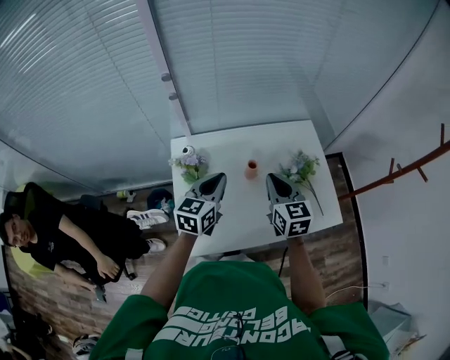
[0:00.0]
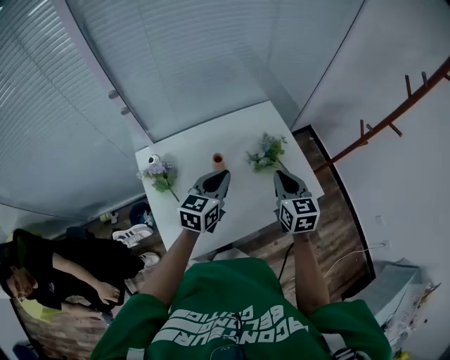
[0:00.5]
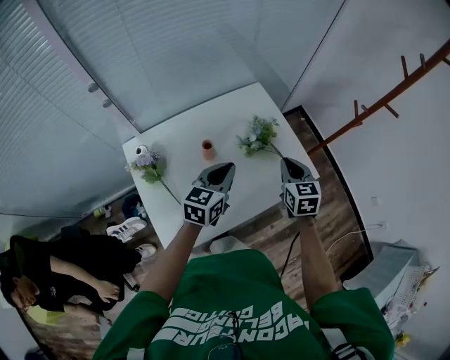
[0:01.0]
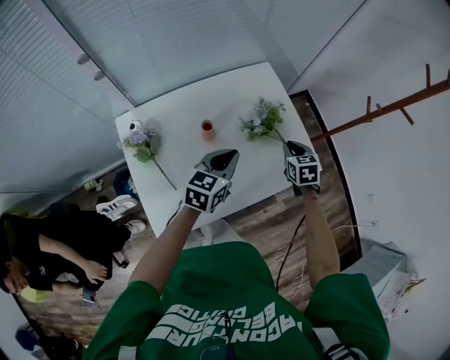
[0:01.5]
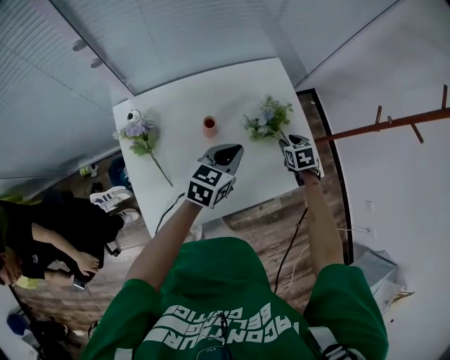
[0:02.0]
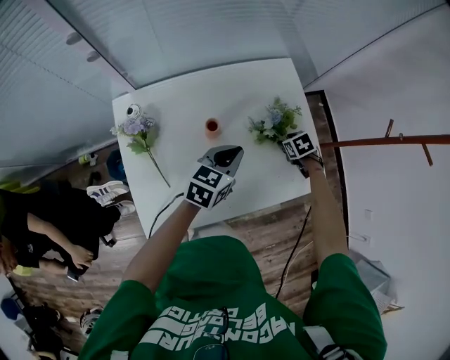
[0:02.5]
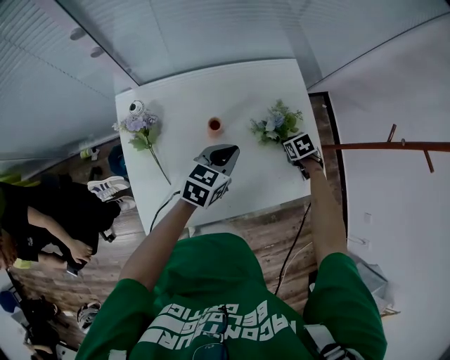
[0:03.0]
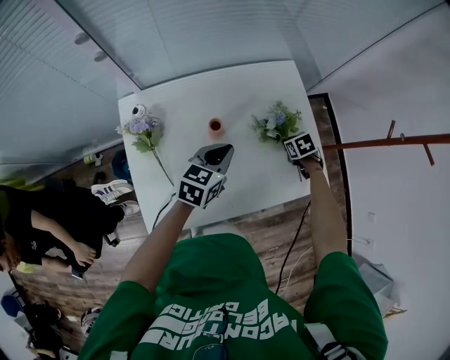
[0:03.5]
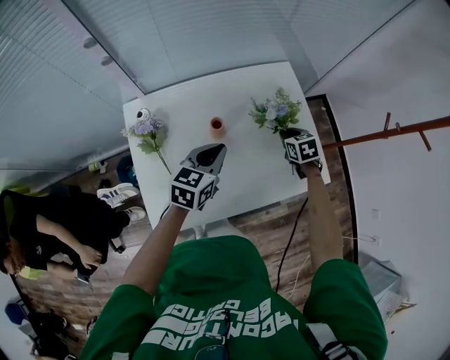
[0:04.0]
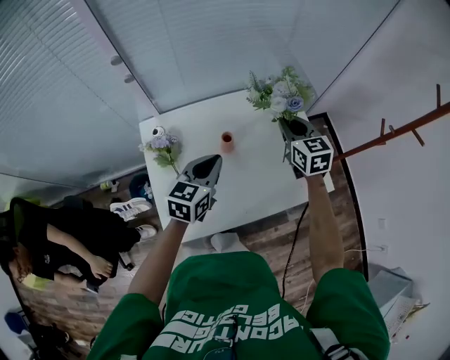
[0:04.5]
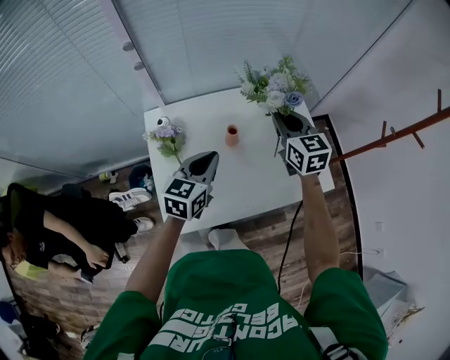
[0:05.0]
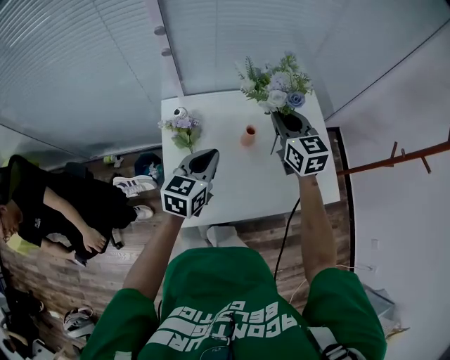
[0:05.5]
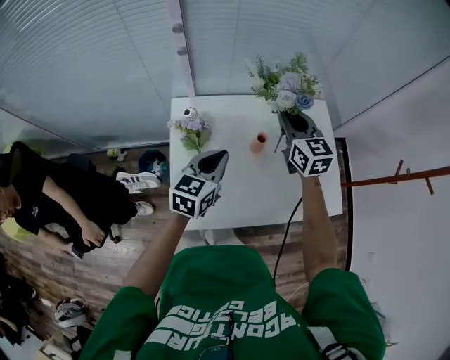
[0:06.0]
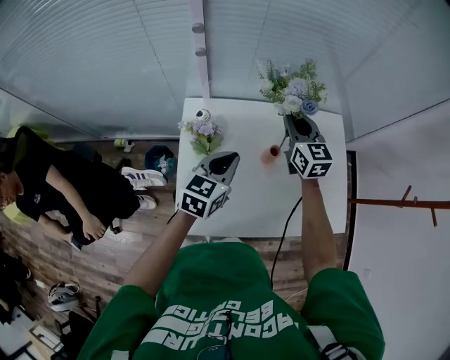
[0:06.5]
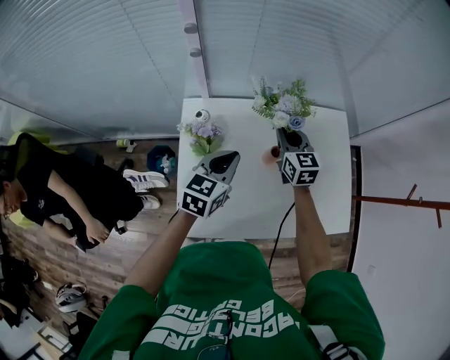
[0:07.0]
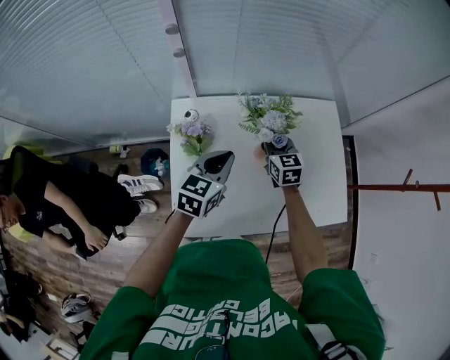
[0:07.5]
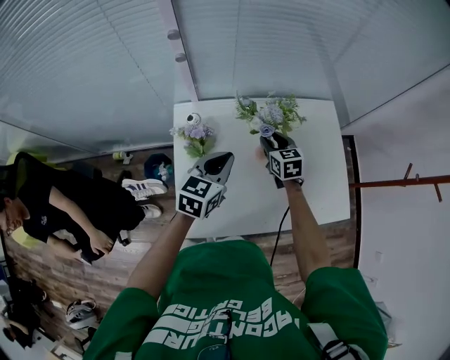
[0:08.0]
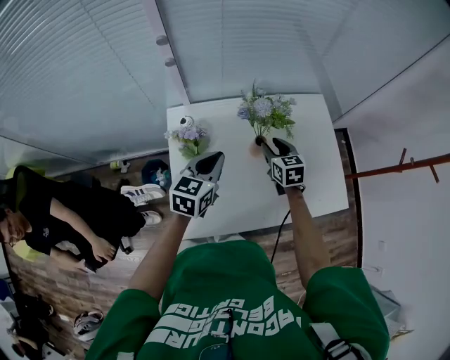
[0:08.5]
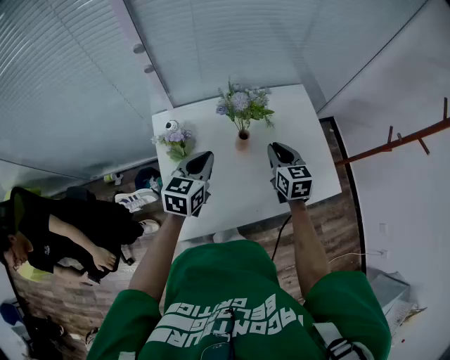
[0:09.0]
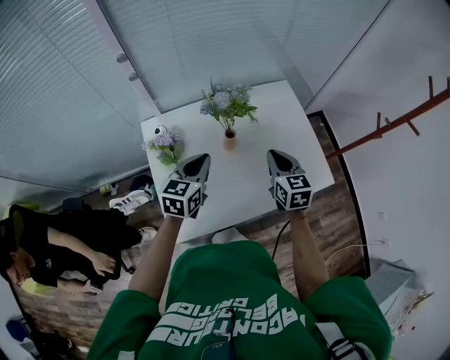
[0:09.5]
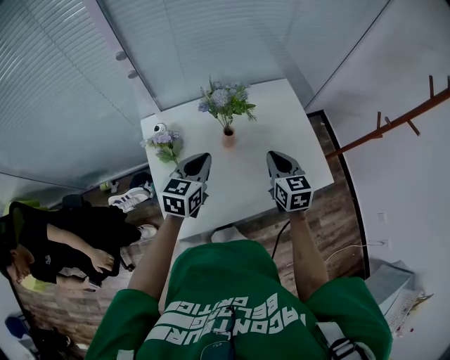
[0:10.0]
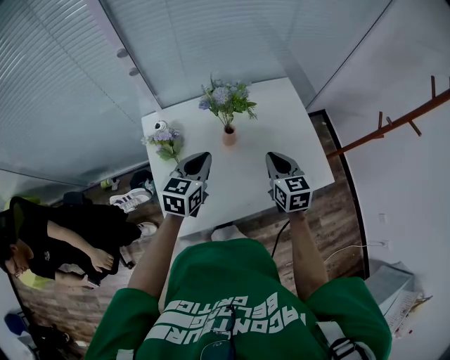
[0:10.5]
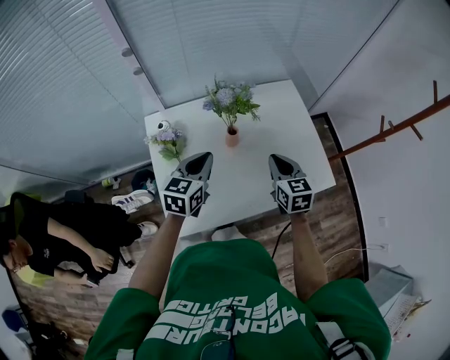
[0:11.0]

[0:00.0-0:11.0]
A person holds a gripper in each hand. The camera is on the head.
0.0 to 2.0 s: The right gripper travels downward, to the right and forward by about 35 cm, points its fingers roughly 40 degrees further downward, and opens its fingers, while the left gripper heads to the right, downward and forward, covering roughly 20 cm, and turns by roughly 20 degrees.
2.0 to 3.5 s: The left gripper shifts by roughly 5 cm. Meanwhile the right gripper goes approximately 10 cm downward, and closes.
3.5 to 5.5 s: The right gripper shifts some 35 cm upward, and tilts its fingers some 60 degrees upward. The left gripper moves about 20 cm.
5.5 to 7.5 s: The right gripper heads downward, covering some 20 cm, while the left gripper goes about 5 cm forward.
7.5 to 9.0 s: The right gripper goes about 15 cm backward, to the right and upward, and opens, then closes again.
9.0 to 11.0 s: The right gripper is displaced backward by about 5 cm.

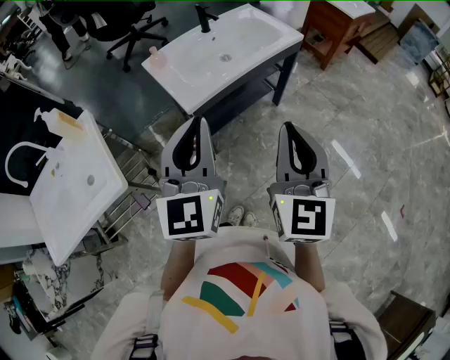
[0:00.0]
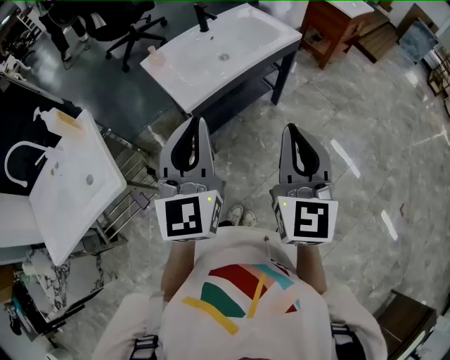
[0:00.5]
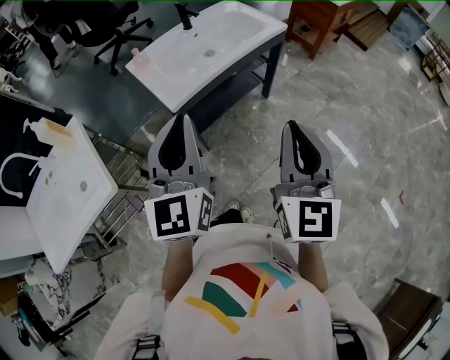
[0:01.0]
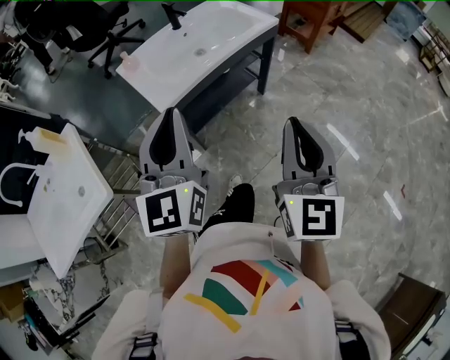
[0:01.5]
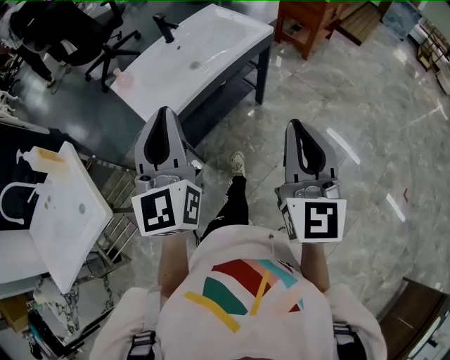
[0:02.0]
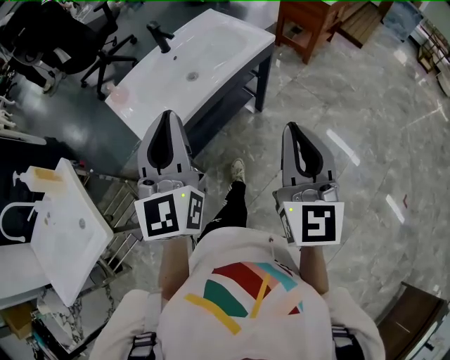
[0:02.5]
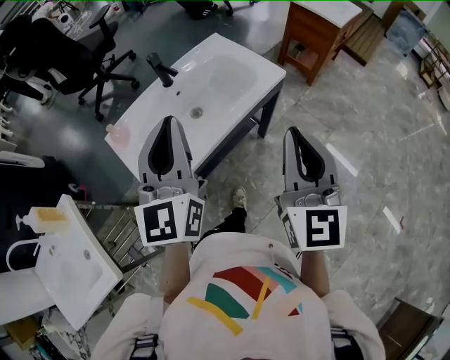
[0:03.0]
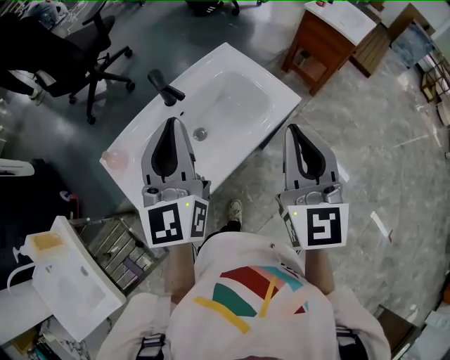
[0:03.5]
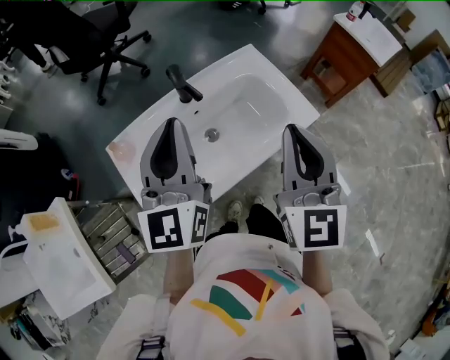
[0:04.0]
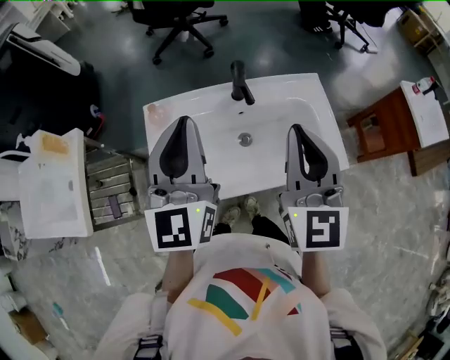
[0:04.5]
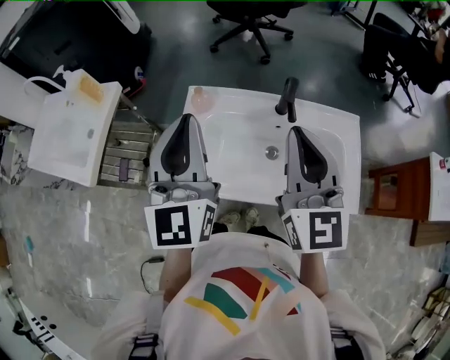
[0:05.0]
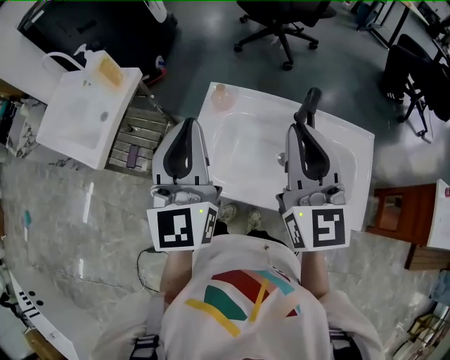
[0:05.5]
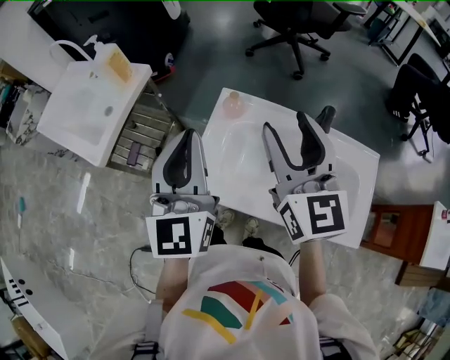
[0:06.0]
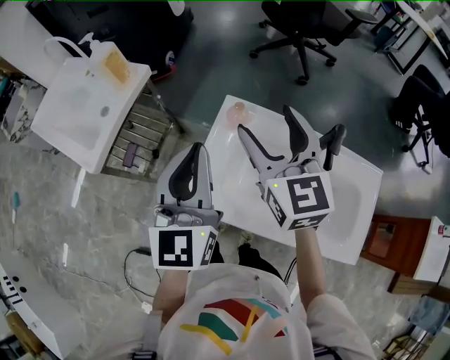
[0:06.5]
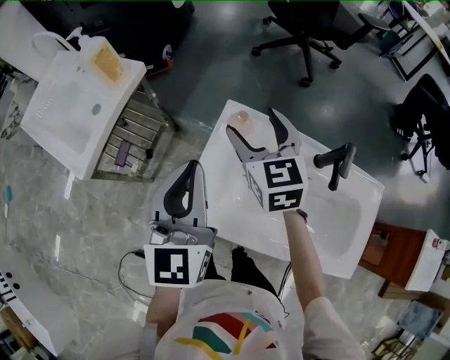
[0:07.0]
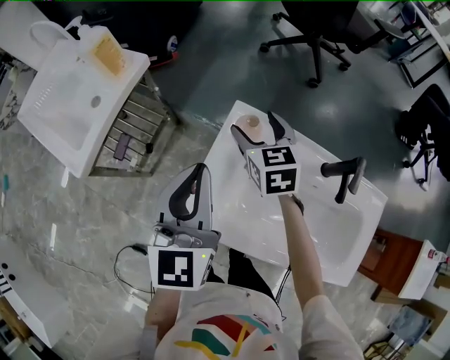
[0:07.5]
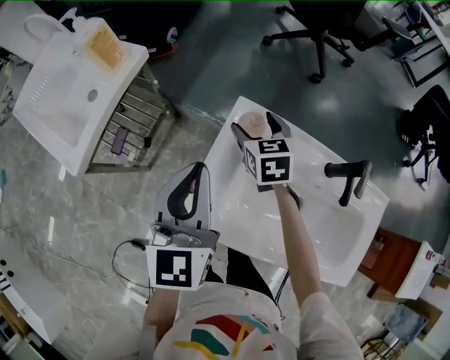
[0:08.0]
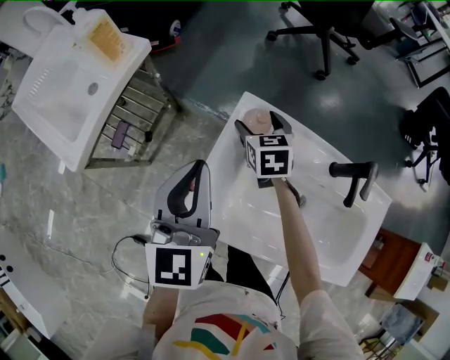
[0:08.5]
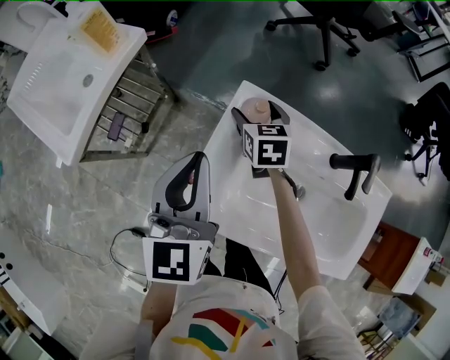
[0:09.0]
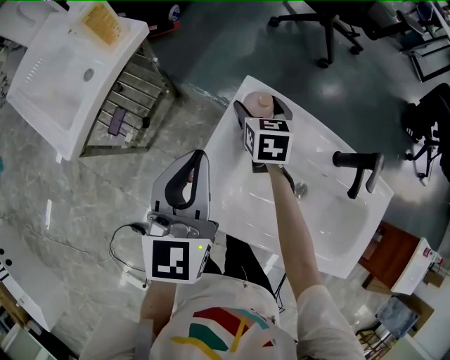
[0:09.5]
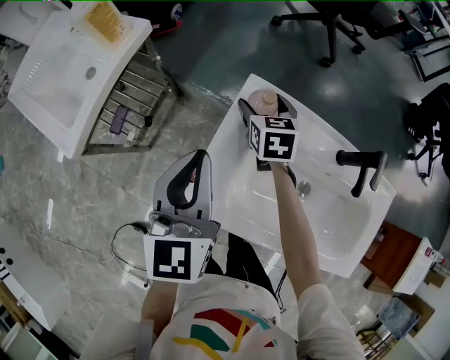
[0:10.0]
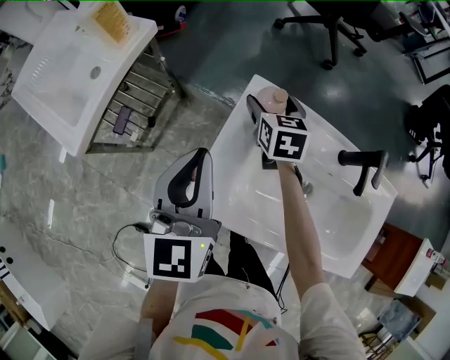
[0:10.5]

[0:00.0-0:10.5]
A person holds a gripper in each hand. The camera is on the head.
0.0 to 2.0 s: The right gripper shifts some 10 cm to the right, while the left gripper goes approximately 5 cm forward.
2.0 to 4.0 s: The grippers both shift forward by about 40 cm.
4.0 to 6.5 s: The right gripper ends up roughly 35 cm from where it was, changes its angle by approximately 70 degrees, and opens its fingers, while the left gripper shifts by some 20 cm, and turns by roughly 50 degrees.
6.5 to 8.5 s: The left gripper goes some 10 cm downward and forward. Meanwhile the right gripper moves downward and forward, some 30 cm, and tips its fingers downward by roughly 30 degrees.
8.5 to 10.5 s: The grippers move only a little.

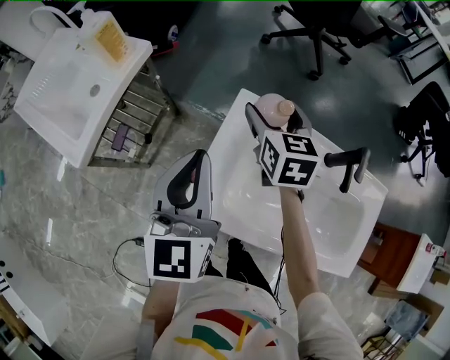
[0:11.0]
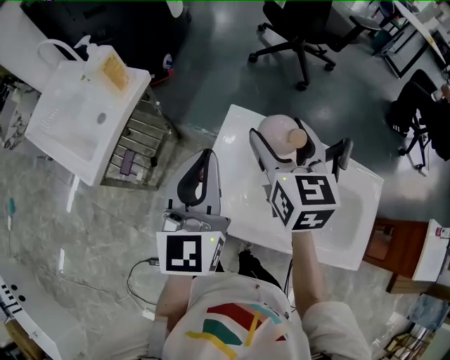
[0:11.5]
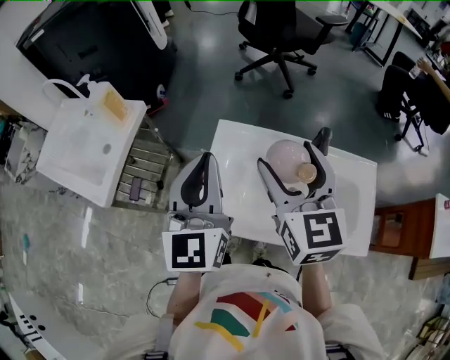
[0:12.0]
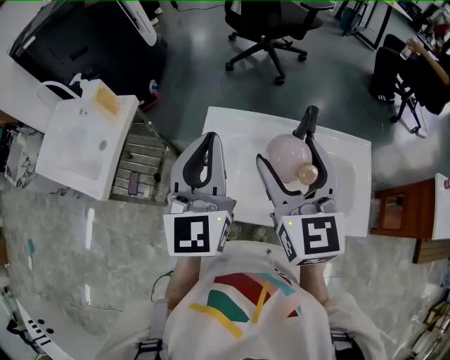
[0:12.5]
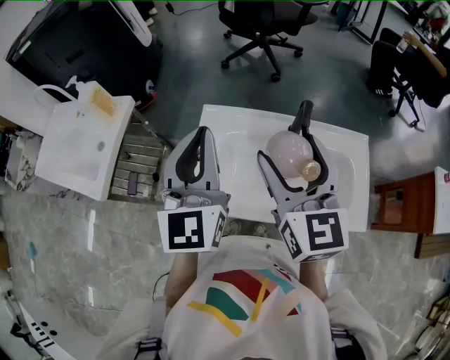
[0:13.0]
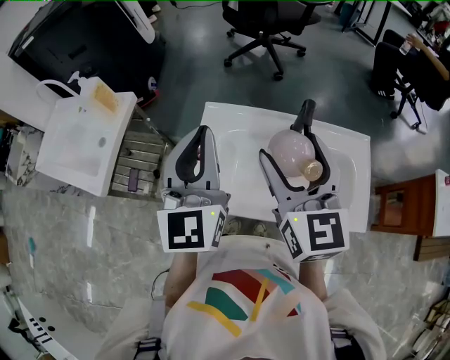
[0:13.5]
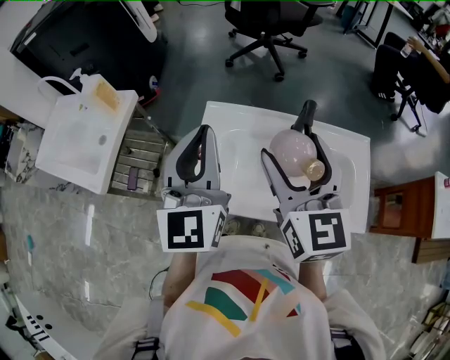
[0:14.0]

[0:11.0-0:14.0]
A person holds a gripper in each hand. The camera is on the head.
11.0 to 12.5 s: The left gripper is displaced upward and to the right by approximately 15 cm, while the right gripper goes about 30 cm backward, upward and to the right, and changes its angle by roughly 20 degrees.
12.5 to 14.0 s: The grippers make only small movements.

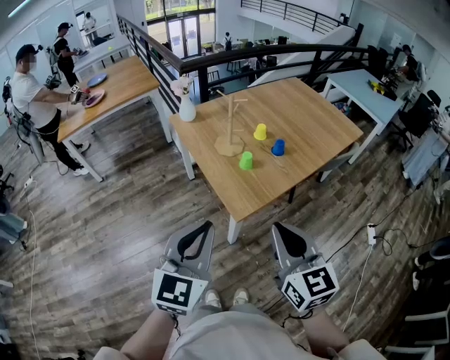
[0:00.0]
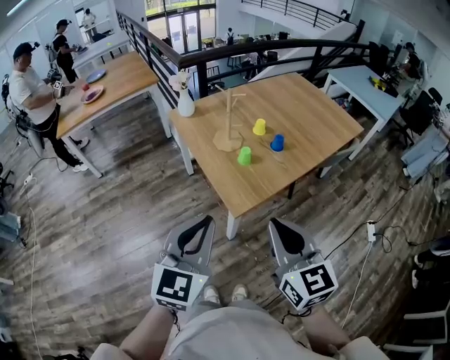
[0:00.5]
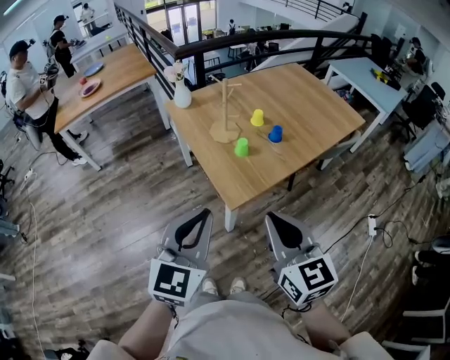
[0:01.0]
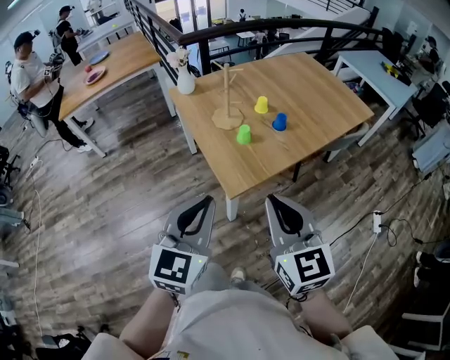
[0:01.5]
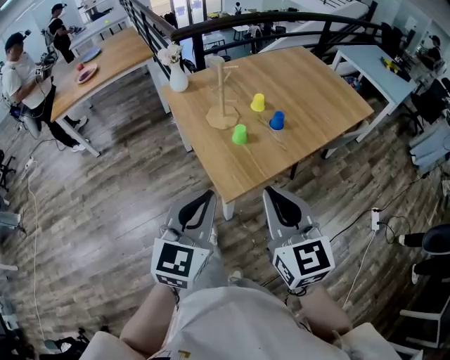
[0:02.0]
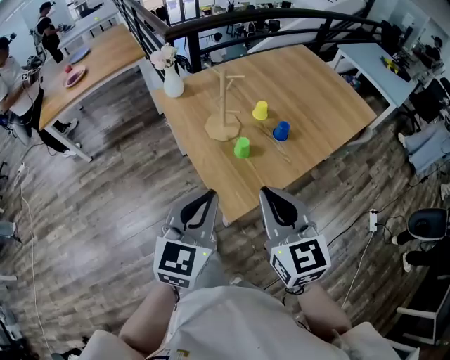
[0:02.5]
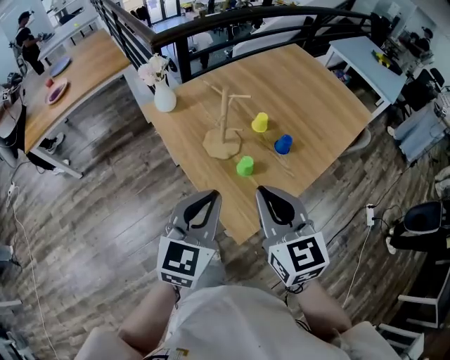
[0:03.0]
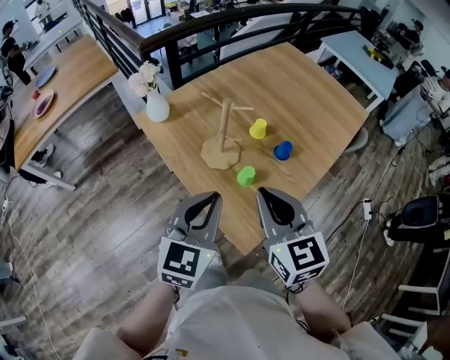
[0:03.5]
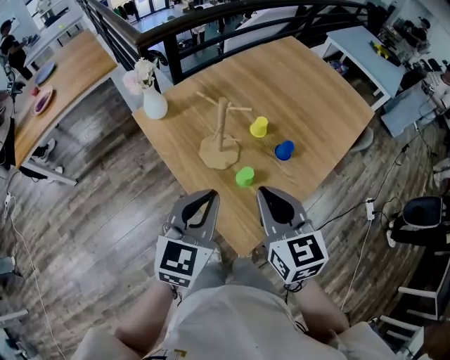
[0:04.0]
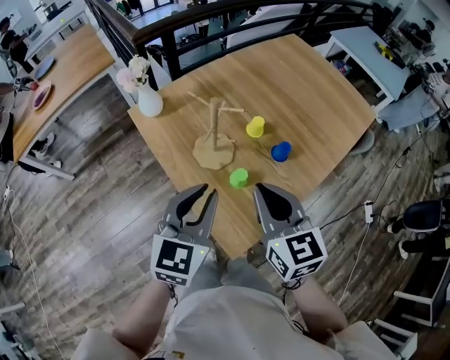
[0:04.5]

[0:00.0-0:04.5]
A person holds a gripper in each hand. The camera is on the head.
0.0 to 2.0 s: The right gripper heads forward, covering roughly 10 cm. Meanwhile the left gripper goes approximately 10 cm forward, to the right and downward.
2.0 to 4.5 s: Both grippers travel together forward, some 30 cm.
